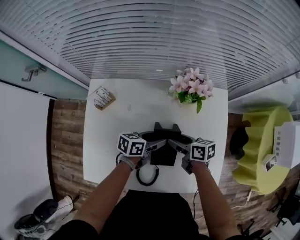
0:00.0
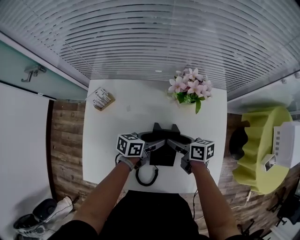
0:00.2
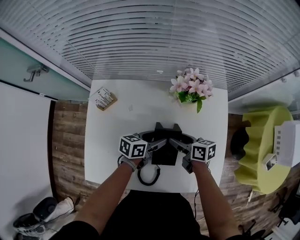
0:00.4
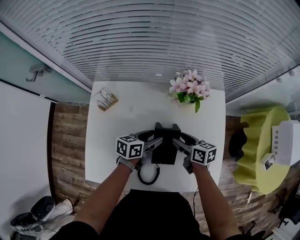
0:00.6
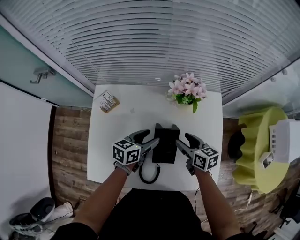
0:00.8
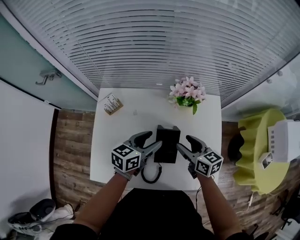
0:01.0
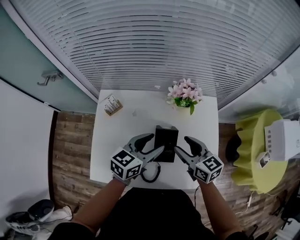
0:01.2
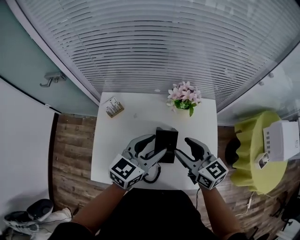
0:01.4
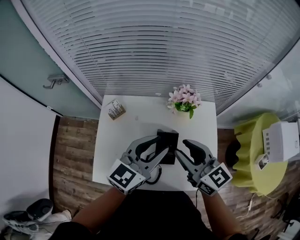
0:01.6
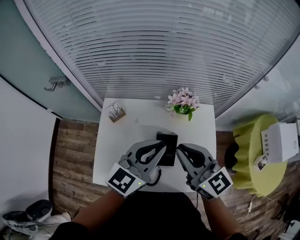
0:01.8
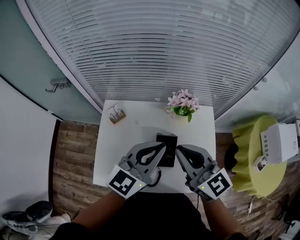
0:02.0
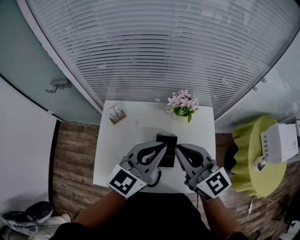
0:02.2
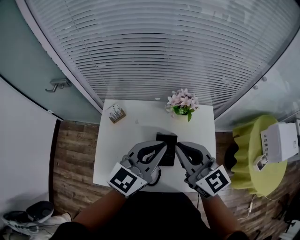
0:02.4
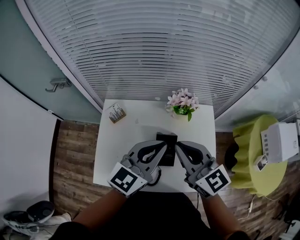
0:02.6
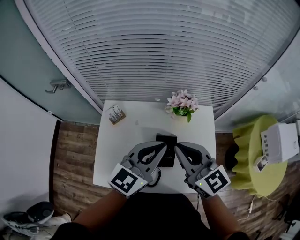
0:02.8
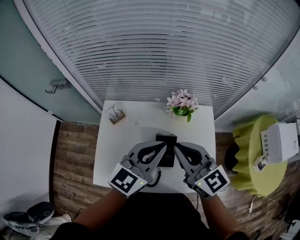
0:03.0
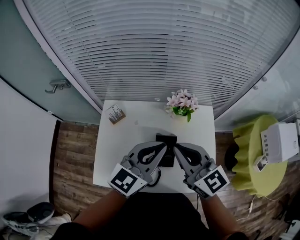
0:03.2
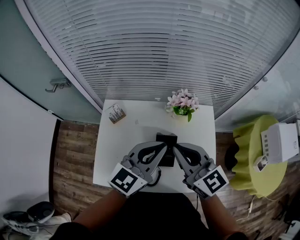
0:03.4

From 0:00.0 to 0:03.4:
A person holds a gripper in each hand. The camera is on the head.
From 0:00.0 to 0:01.6: Both grippers move upward, about 30 cm. The right gripper rolls counterclockwise, seen from behind, by roughly 40 degrees. Meanwhile the left gripper rotates around the line of its fingers by some 40 degrees, clockwise from behind.
From 0:01.6 to 0:03.4: The left gripper closes its fingers, while the right gripper closes.

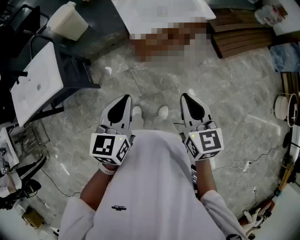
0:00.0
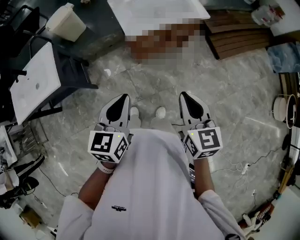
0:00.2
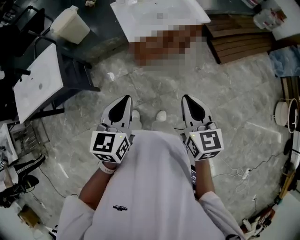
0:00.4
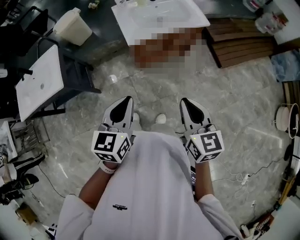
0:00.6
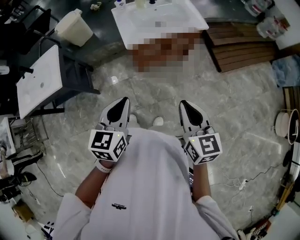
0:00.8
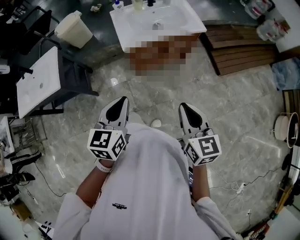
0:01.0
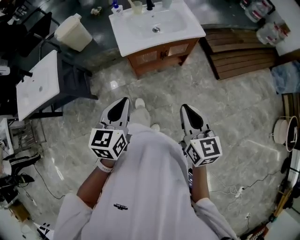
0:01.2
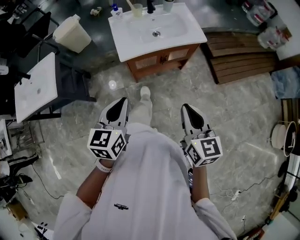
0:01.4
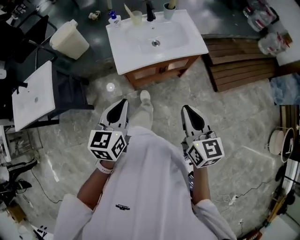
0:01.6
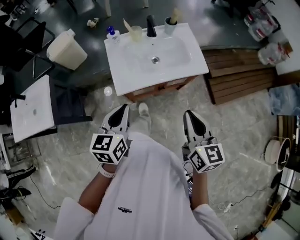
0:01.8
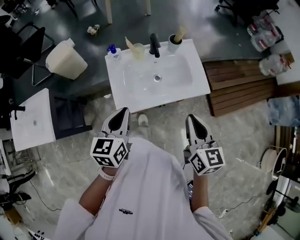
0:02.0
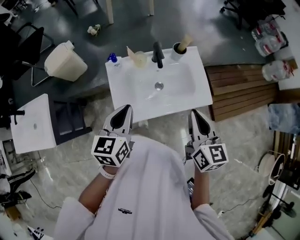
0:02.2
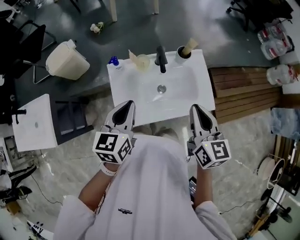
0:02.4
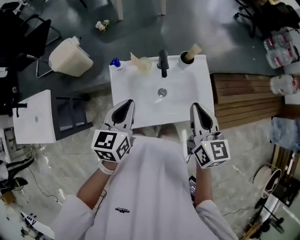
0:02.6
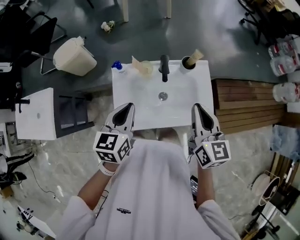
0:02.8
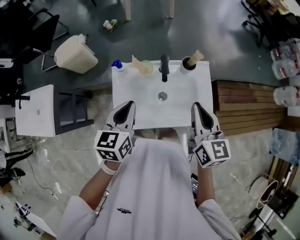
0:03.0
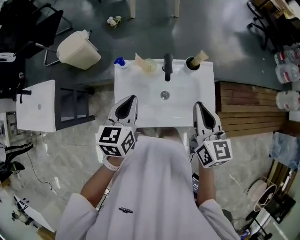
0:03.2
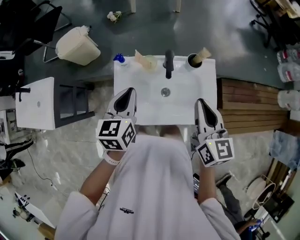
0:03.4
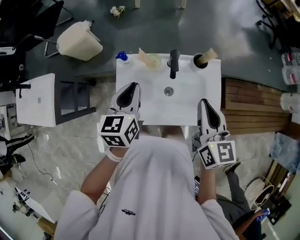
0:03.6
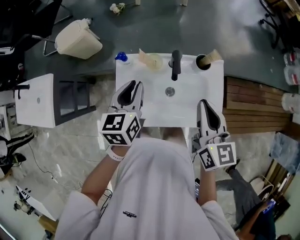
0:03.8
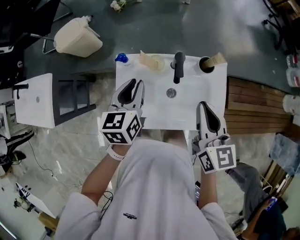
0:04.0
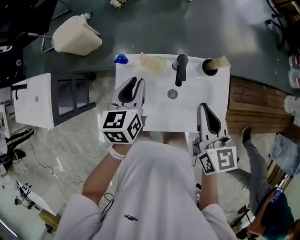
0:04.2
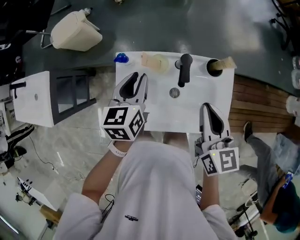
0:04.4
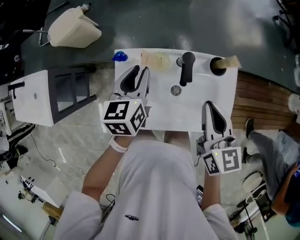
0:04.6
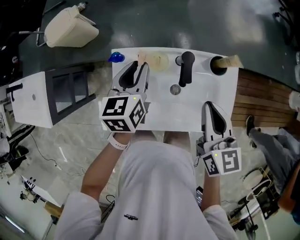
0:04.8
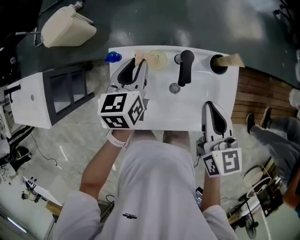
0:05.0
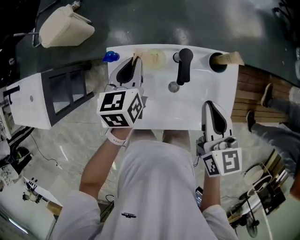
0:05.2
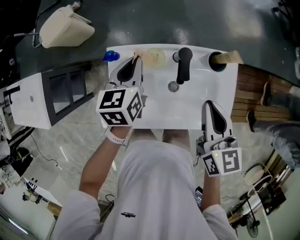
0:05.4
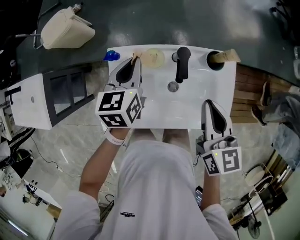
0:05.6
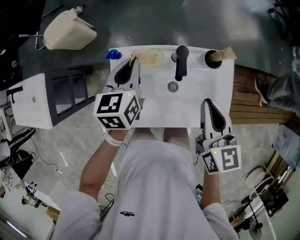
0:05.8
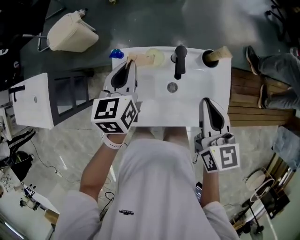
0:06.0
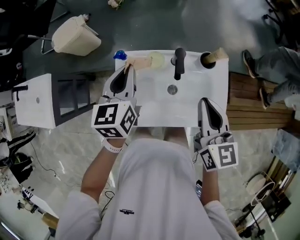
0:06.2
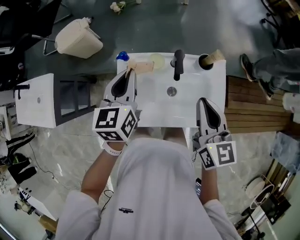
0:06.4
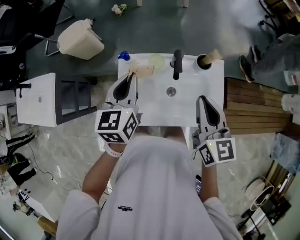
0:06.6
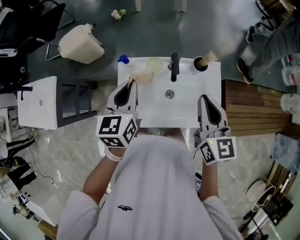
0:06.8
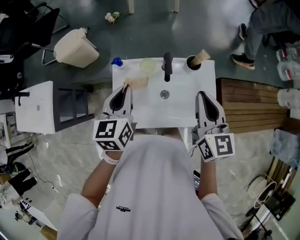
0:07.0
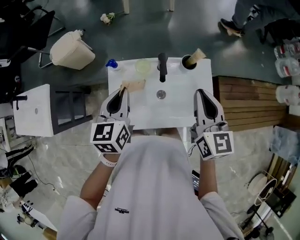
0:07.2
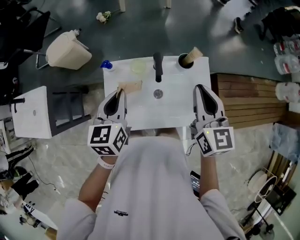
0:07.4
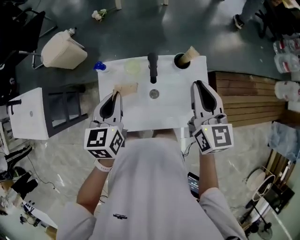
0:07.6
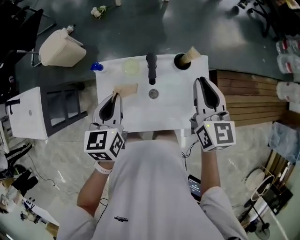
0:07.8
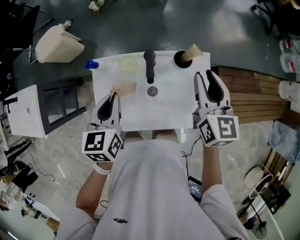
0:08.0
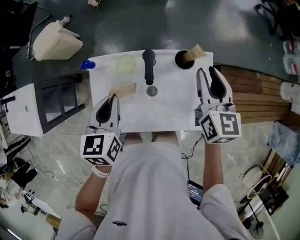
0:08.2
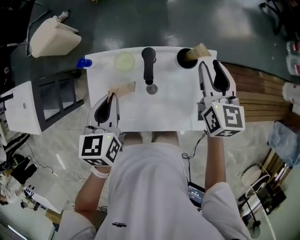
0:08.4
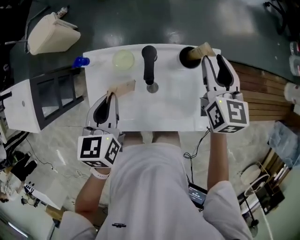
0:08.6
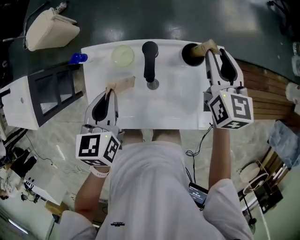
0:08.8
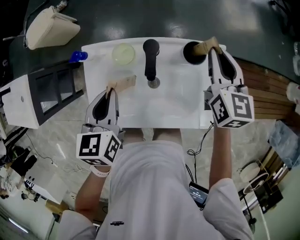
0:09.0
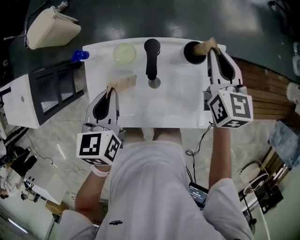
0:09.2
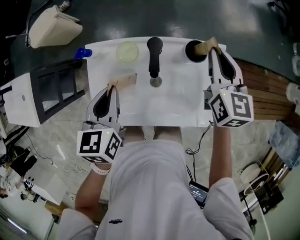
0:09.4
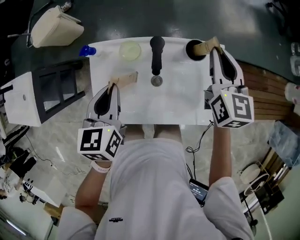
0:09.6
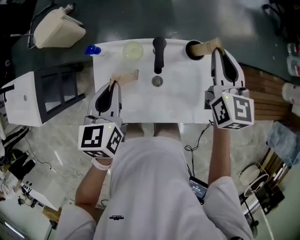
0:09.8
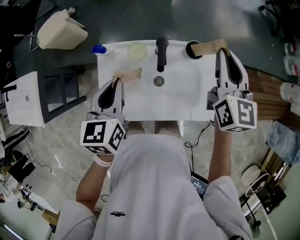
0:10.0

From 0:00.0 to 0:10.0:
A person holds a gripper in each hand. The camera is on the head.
From 0:00.0 to 0:01.4: The left gripper heads to the right and forward, covering roughly 15 cm, while the right gripper shifts about 15 cm to the right.
From 0:01.4 to 0:02.8: The two grippers travel together, forward, some 50 cm.
From 0:02.8 to 0:04.2: Both grippers move forward and downward, about 10 cm.
From 0:04.2 to 0:05.8: The left gripper goes some 5 cm forward.
From 0:05.8 to 0:07.2: The right gripper shifts approximately 10 cm upward. The left gripper shifts some 15 cm backward and upward.
From 0:07.2 to 0:08.6: The left gripper is displaced downward by approximately 10 cm, while the right gripper travels forward, downward and to the right by about 25 cm, and opens.
From 0:08.6 to 0:10.0: The left gripper heads upward, covering approximately 5 cm. Meanwhile the right gripper travels upward by about 10 cm, and closes its fingers.

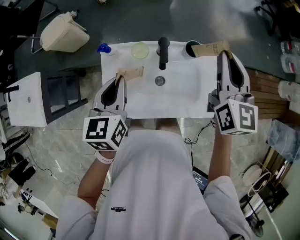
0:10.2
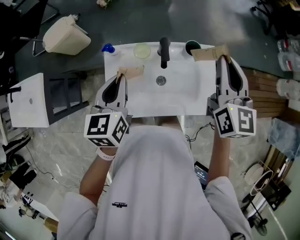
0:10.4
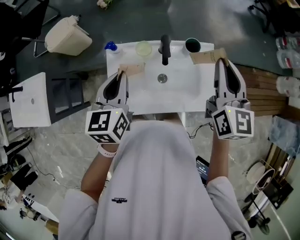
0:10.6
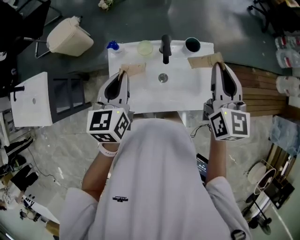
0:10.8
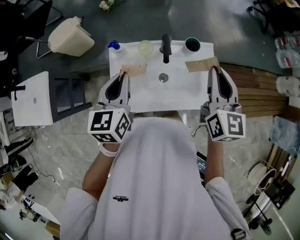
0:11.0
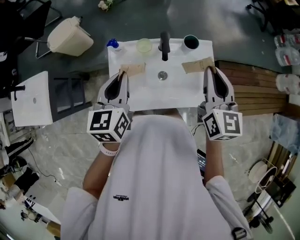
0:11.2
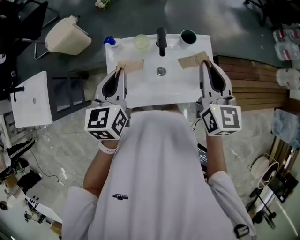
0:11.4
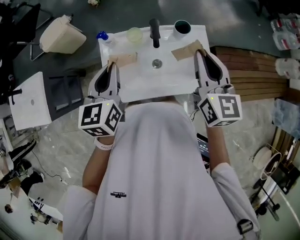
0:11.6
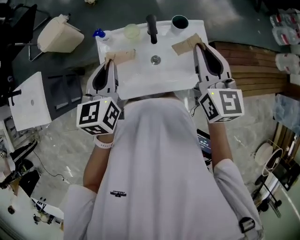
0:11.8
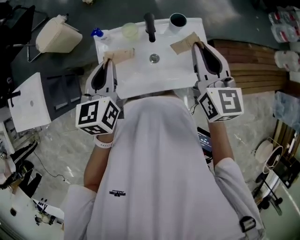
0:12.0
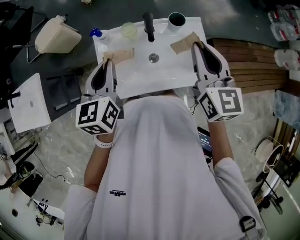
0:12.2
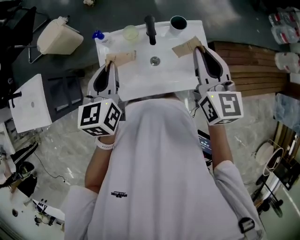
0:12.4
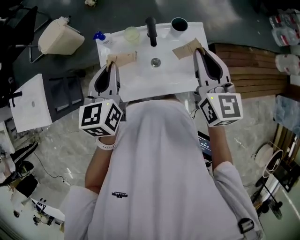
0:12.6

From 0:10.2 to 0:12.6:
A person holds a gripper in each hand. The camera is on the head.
From 0:10.2 to 0:11.4: The right gripper shifts some 10 cm backward. Meanwhile the left gripper changes place by roughly 5 cm.
From 0:11.4 to 0:12.6: Neither gripper changes place.

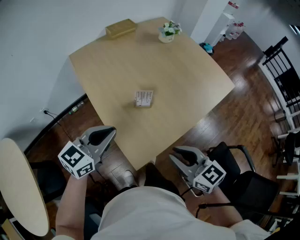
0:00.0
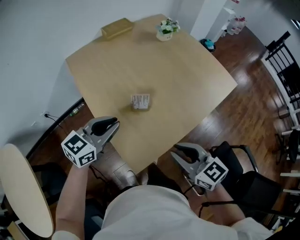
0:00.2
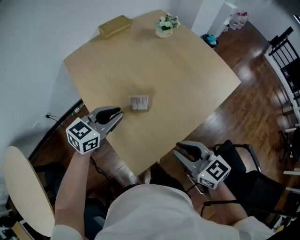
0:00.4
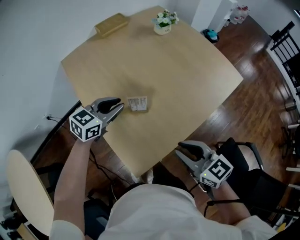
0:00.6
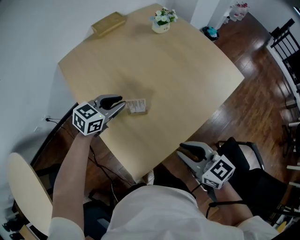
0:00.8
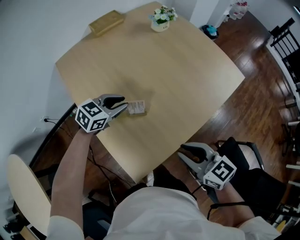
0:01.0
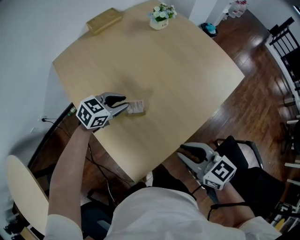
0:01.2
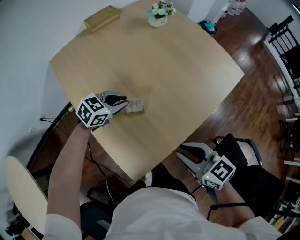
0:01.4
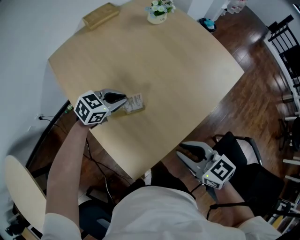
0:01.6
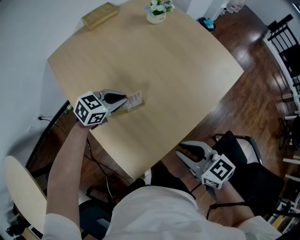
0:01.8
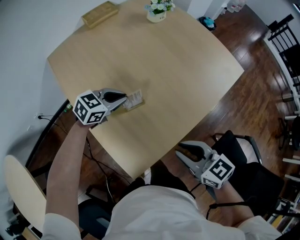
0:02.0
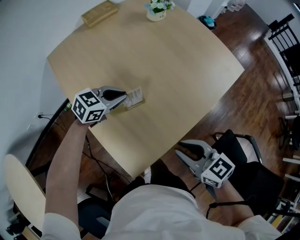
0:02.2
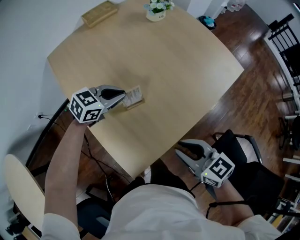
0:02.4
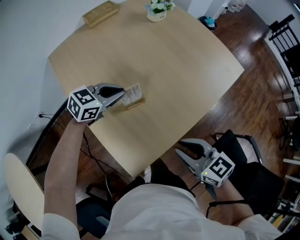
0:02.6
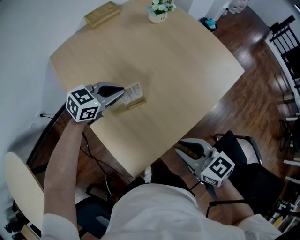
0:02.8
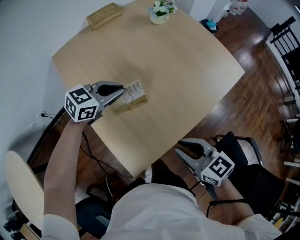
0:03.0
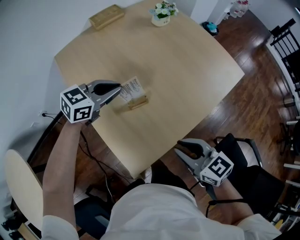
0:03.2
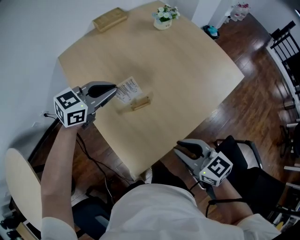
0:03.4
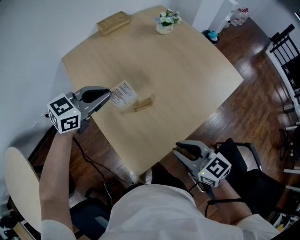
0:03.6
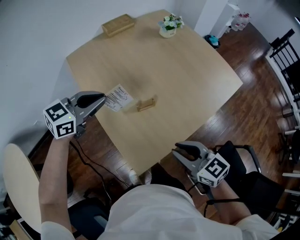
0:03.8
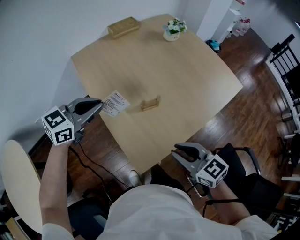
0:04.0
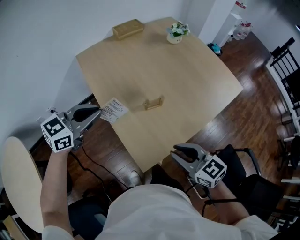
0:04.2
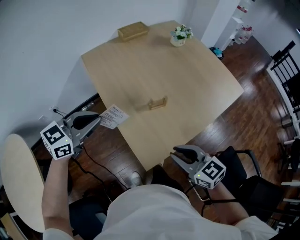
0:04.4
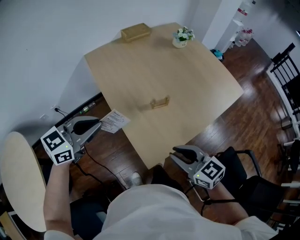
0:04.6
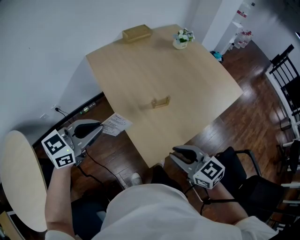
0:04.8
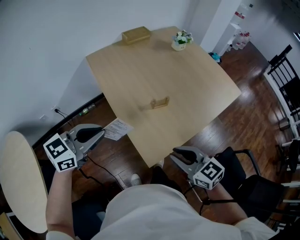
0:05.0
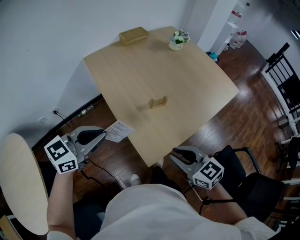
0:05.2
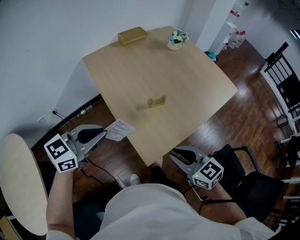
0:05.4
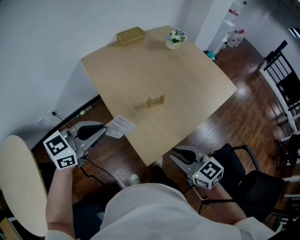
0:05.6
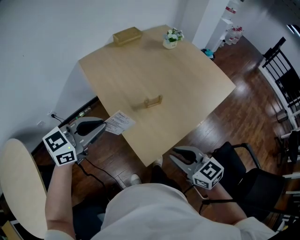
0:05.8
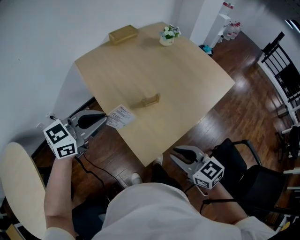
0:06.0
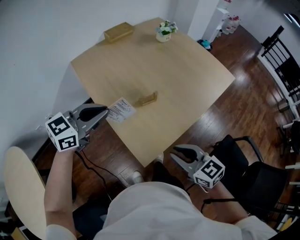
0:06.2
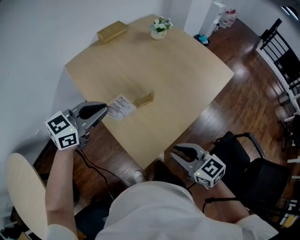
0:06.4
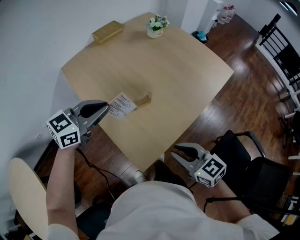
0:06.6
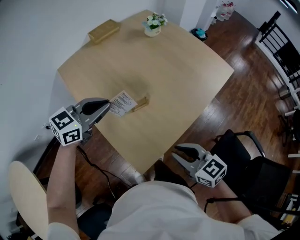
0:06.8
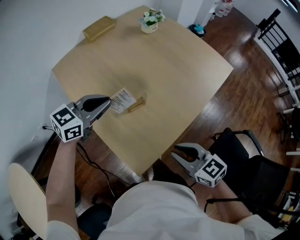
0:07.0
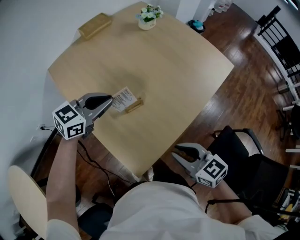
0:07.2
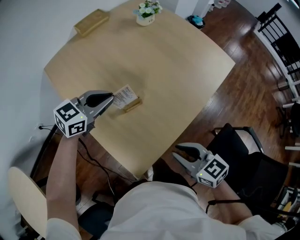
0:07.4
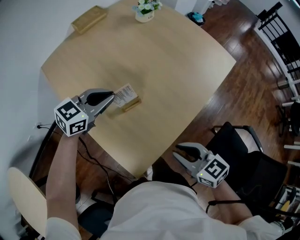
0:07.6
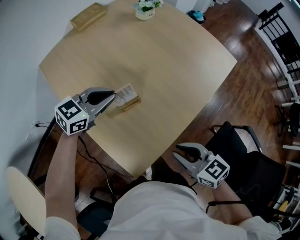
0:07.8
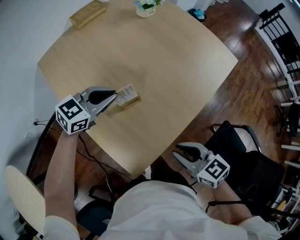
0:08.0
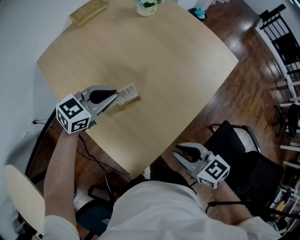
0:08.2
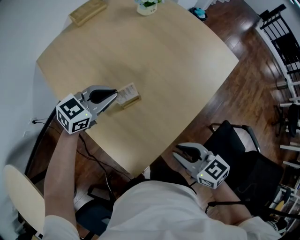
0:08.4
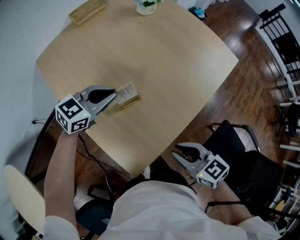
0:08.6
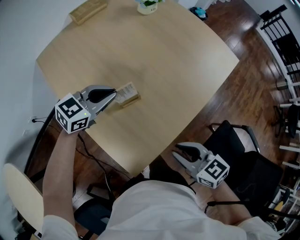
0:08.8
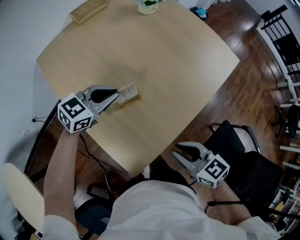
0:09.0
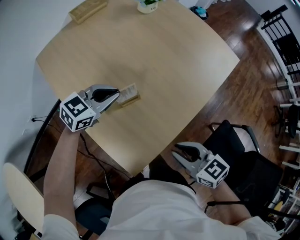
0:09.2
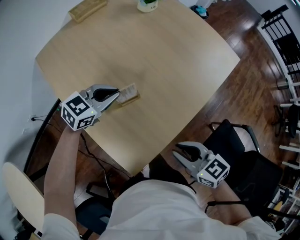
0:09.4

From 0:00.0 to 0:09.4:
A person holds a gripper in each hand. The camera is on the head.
From 0:00.0 to 0:01.6: The right gripper is displaced forward and to the right by roughly 10 cm. Meanwhile the left gripper heads forward and downward, covering approximately 25 cm, and turns by some 30 degrees.
From 0:01.6 to 0:03.2: The left gripper moves upward, some 10 cm.
From 0:03.2 to 0:04.8: The right gripper moves to the left and backward, roughly 15 cm. Meanwhile the left gripper heads backward and to the left, covering some 30 cm.
From 0:04.8 to 0:06.2: The left gripper shifts about 10 cm forward and to the right.
From 0:06.2 to 0:07.8: The right gripper moves forward, to the right and downward, some 10 cm. Meanwhile the left gripper heads forward, downward and to the right, covering approximately 25 cm.
From 0:07.8 to 0:09.4: The left gripper goes roughly 5 cm downward.
